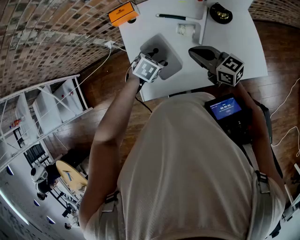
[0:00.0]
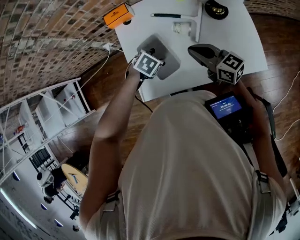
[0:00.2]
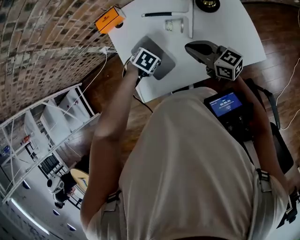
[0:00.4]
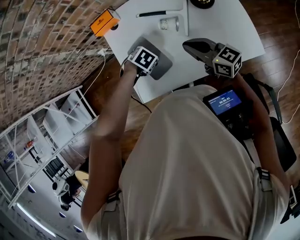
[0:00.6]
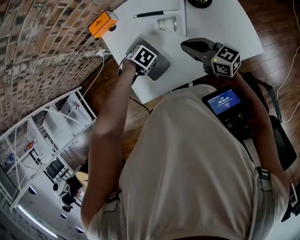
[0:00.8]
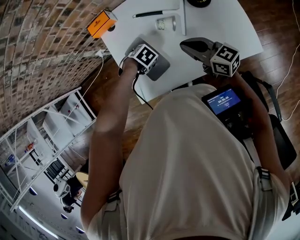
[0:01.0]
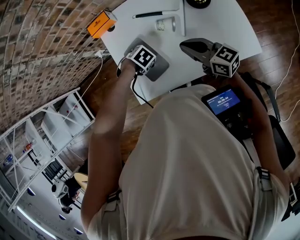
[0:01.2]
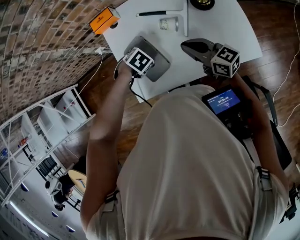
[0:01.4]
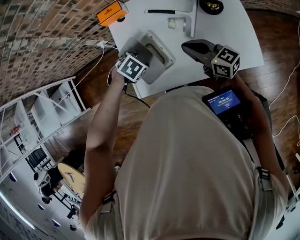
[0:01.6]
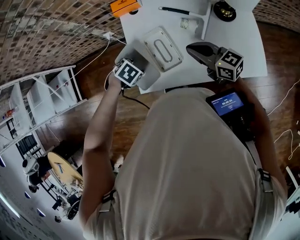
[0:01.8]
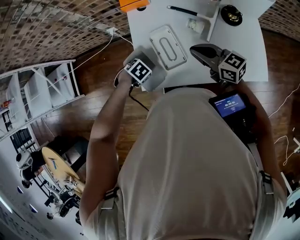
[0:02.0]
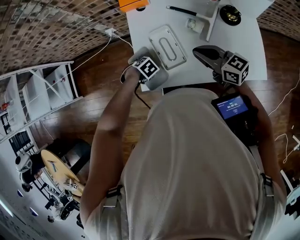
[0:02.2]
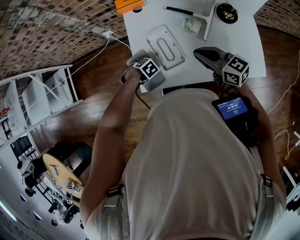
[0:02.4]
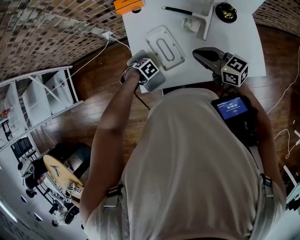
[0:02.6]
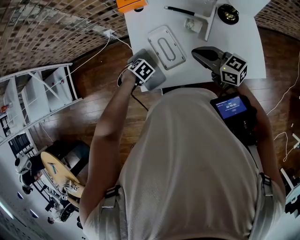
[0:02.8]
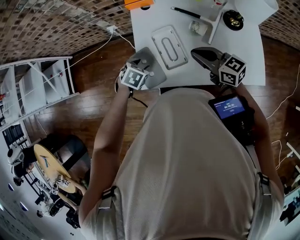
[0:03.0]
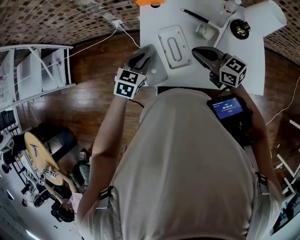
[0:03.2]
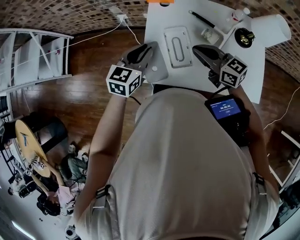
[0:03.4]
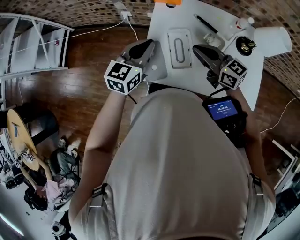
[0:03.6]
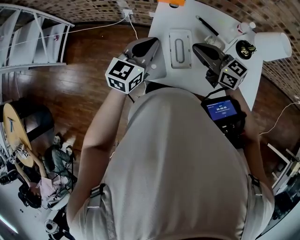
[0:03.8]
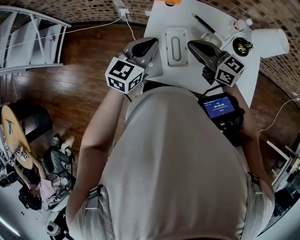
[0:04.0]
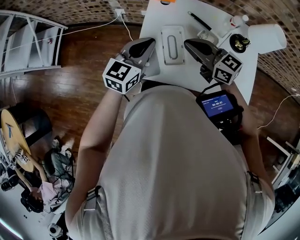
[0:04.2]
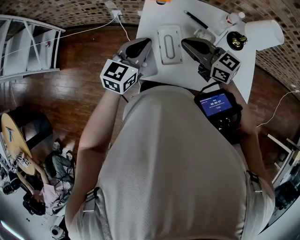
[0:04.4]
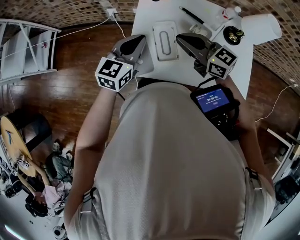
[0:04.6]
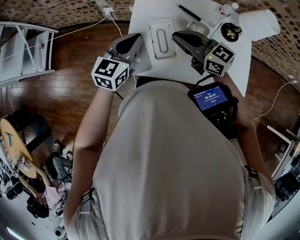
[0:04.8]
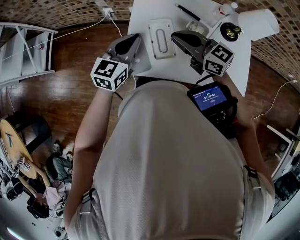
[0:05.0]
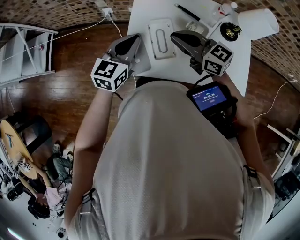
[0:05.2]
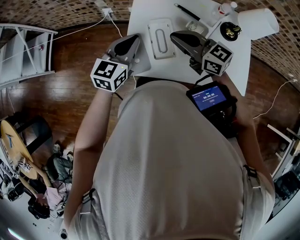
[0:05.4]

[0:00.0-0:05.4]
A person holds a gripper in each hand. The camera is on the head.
0:01.4 to 0:02.8: The right gripper changes place by some 10 cm, while the left gripper changes place by about 15 cm.
0:02.8 to 0:04.0: The left gripper heads upward, covering roughly 35 cm, points its fingers roughly 70 degrees further upward, and closes its fingers, while the right gripper is displaced upward by some 10 cm.
0:04.0 to 0:05.4: The grippers stay close to where they were, moving slightly.

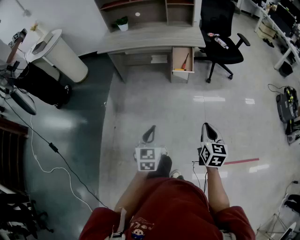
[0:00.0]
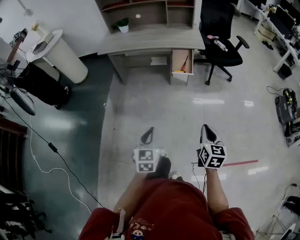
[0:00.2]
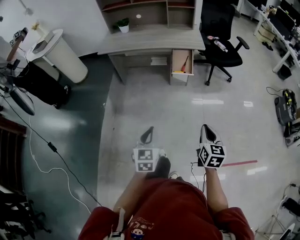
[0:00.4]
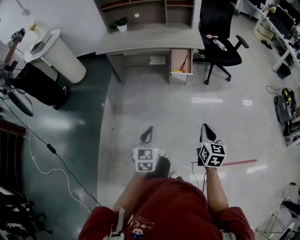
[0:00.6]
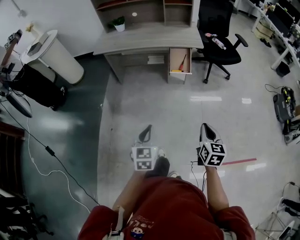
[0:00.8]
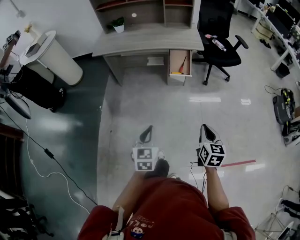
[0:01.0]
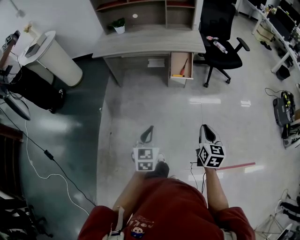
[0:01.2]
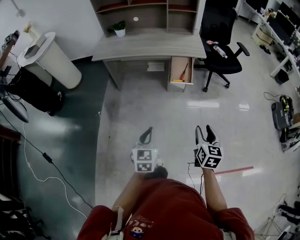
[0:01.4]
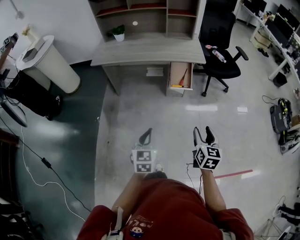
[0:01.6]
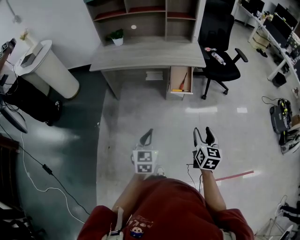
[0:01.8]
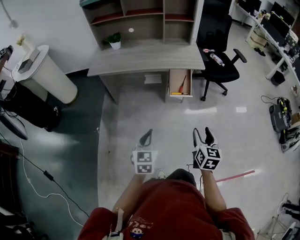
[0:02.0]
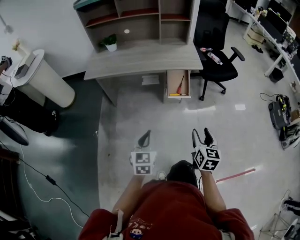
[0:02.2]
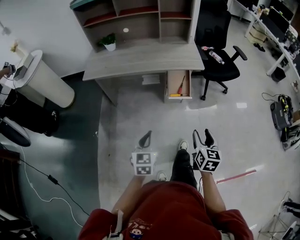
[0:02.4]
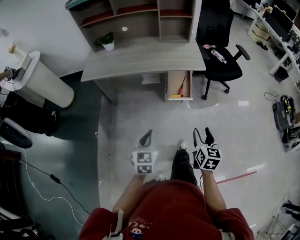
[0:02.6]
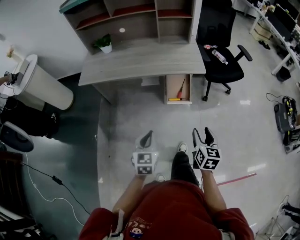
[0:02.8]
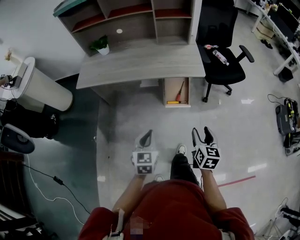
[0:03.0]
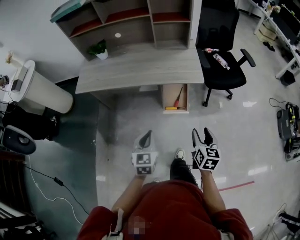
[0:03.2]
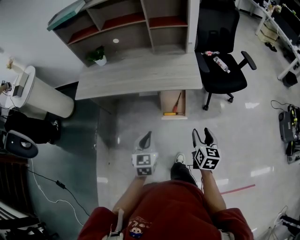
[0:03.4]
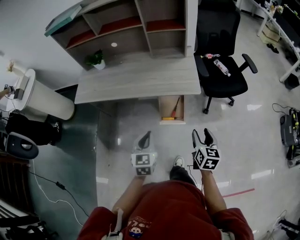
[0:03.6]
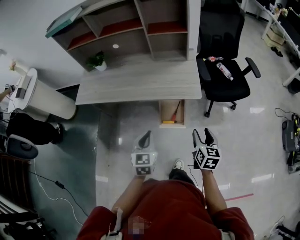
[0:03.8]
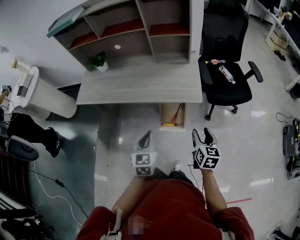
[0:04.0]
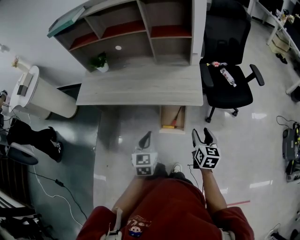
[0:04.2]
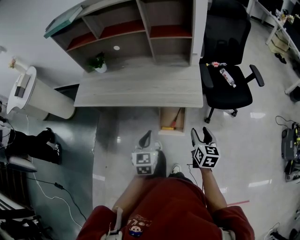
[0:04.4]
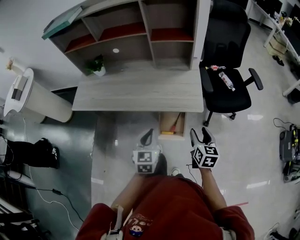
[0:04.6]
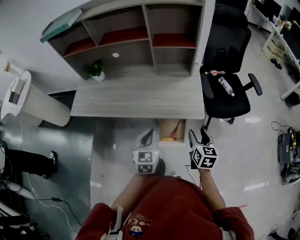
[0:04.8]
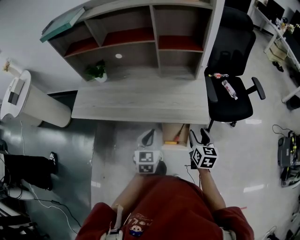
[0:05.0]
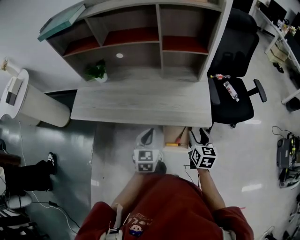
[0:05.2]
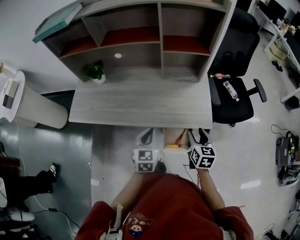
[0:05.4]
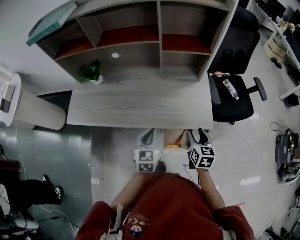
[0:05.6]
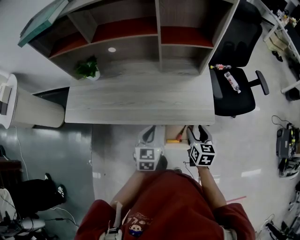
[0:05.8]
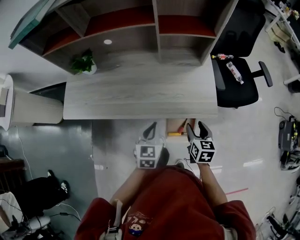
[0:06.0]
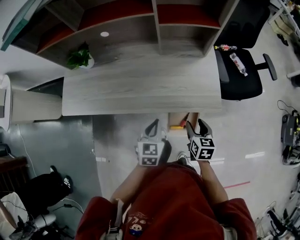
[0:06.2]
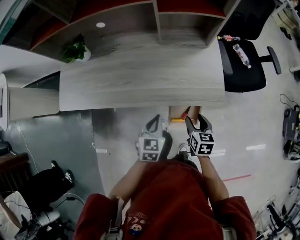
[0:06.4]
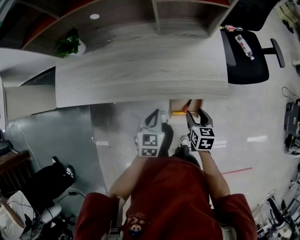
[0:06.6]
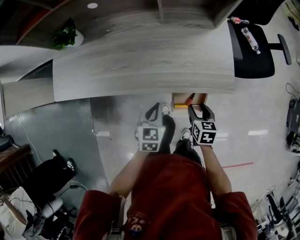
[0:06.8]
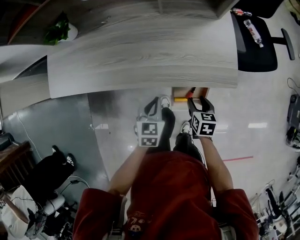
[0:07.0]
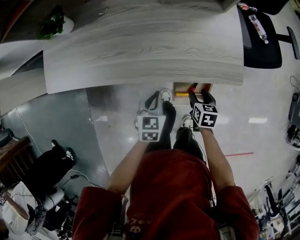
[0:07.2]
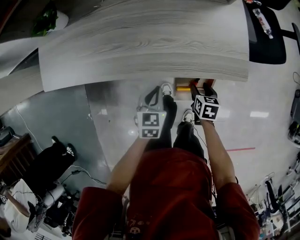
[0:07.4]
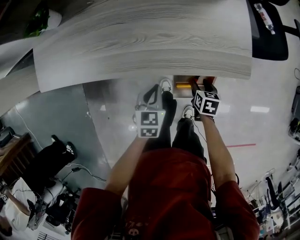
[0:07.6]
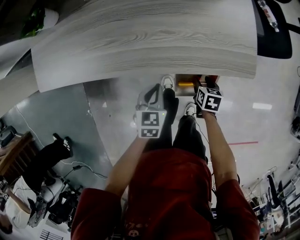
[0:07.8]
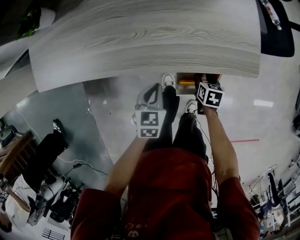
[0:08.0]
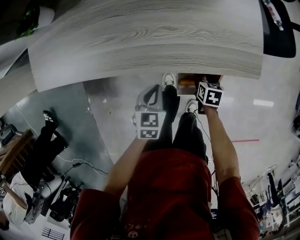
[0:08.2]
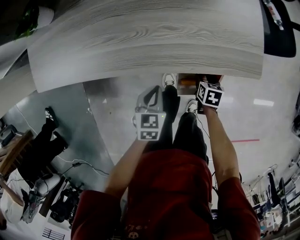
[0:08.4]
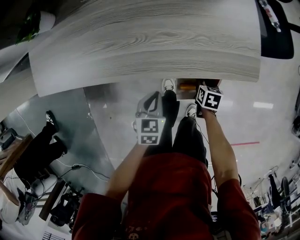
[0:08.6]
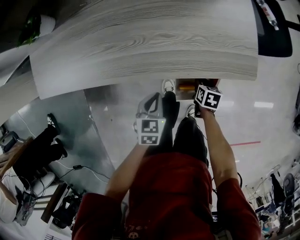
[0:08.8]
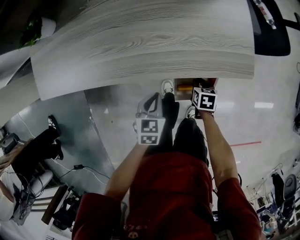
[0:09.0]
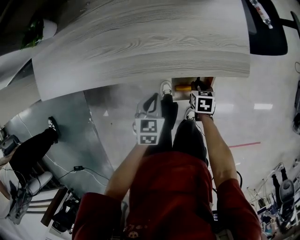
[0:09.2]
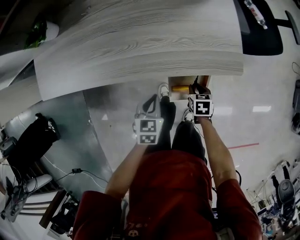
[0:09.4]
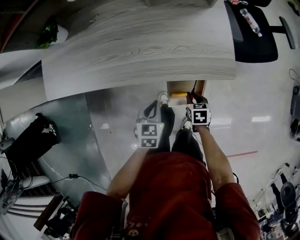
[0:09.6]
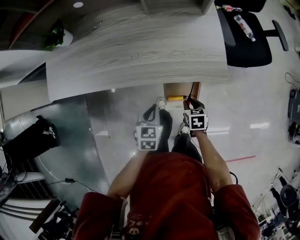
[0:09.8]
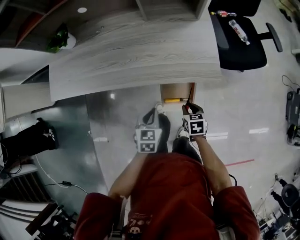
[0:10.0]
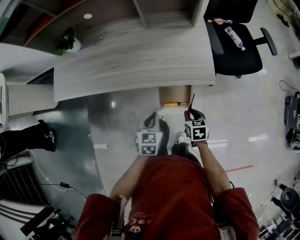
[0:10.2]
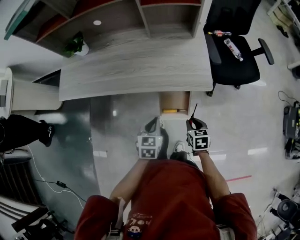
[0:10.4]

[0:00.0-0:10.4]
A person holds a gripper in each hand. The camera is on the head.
0:00.0 to 0:01.4: Both grippers move forward, about 10 cm. The right gripper opens up.
0:01.4 to 0:03.0: The two grippers go about 30 cm forward.
0:03.0 to 0:04.4: The grippers both shift forward and to the right by roughly 25 cm.
0:04.4 to 0:06.0: The left gripper is displaced forward by about 20 cm. The right gripper heads forward, to the left and downward, covering roughly 25 cm.
0:06.0 to 0:07.4: Both grippers move downward, approximately 20 cm. The right gripper turns by about 20 degrees.
0:07.4 to 0:09.0: The right gripper shifts roughly 5 cm downward, and closes up. Meanwhile the left gripper goes some 5 cm backward.
0:09.0 to 0:10.4: The right gripper shifts roughly 25 cm upward and backward; the left gripper heads upward, backward and to the right, covering approximately 20 cm.

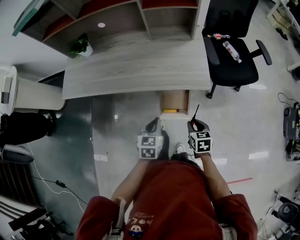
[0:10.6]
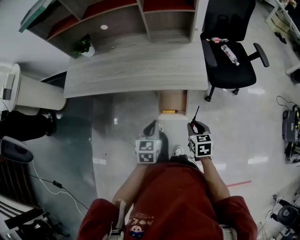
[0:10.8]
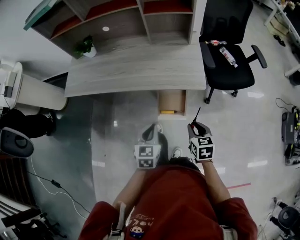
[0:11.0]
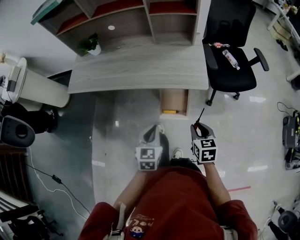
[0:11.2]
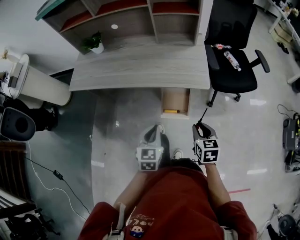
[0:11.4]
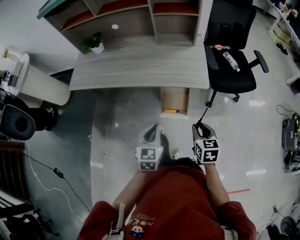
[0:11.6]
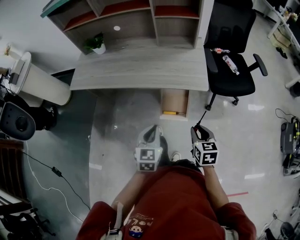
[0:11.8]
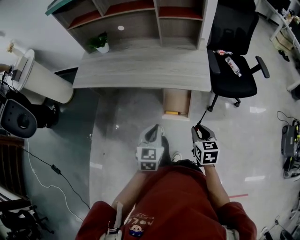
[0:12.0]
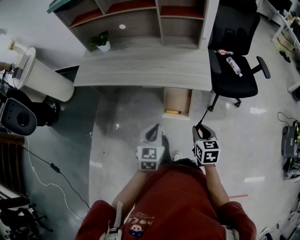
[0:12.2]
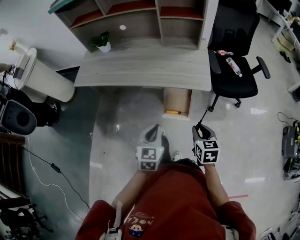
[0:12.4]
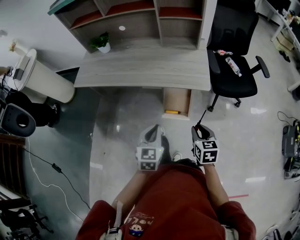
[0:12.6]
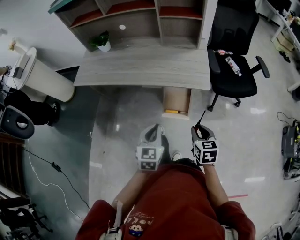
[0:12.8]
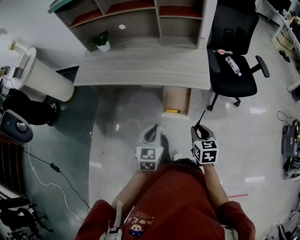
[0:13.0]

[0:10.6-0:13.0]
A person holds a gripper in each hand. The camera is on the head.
0:10.6 to 0:11.8: The left gripper goes some 15 cm backward and upward, while the right gripper goes approximately 15 cm upward and backward.
0:11.8 to 0:13.0: The grippers stay close to where they were, moving slightly.

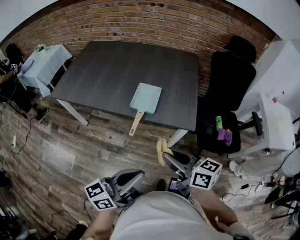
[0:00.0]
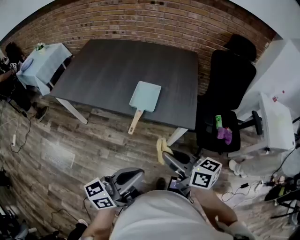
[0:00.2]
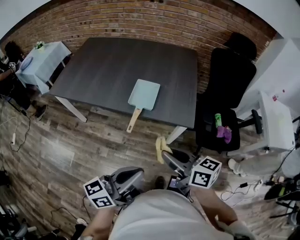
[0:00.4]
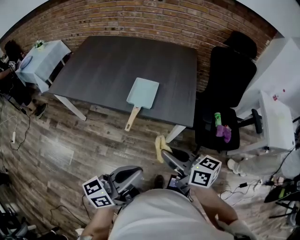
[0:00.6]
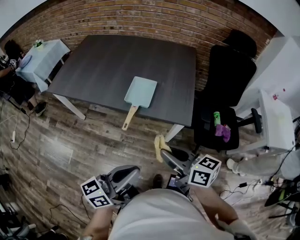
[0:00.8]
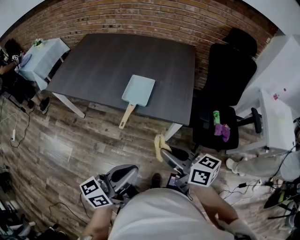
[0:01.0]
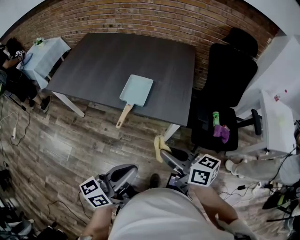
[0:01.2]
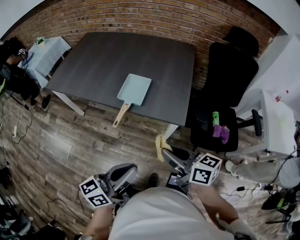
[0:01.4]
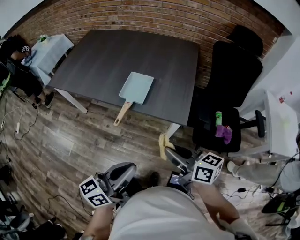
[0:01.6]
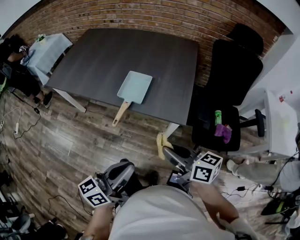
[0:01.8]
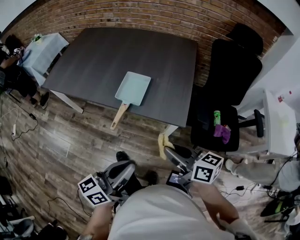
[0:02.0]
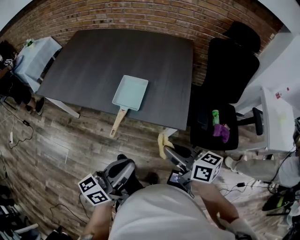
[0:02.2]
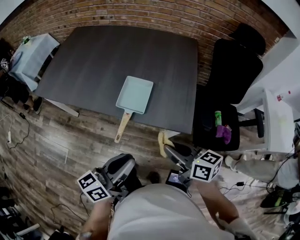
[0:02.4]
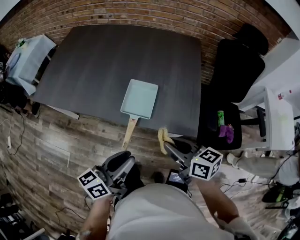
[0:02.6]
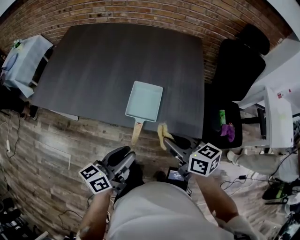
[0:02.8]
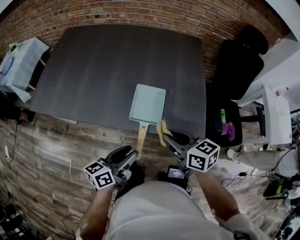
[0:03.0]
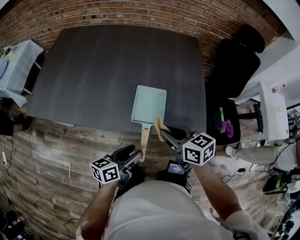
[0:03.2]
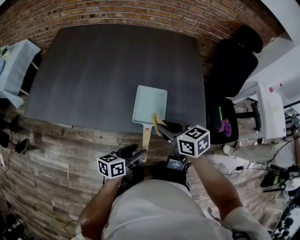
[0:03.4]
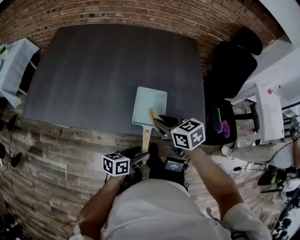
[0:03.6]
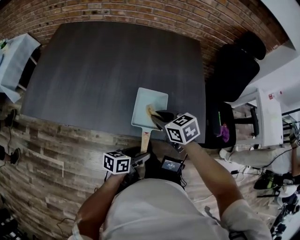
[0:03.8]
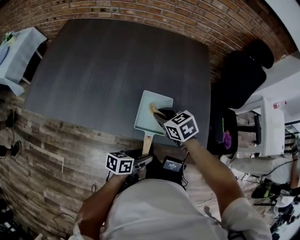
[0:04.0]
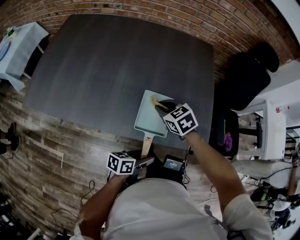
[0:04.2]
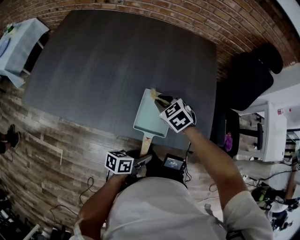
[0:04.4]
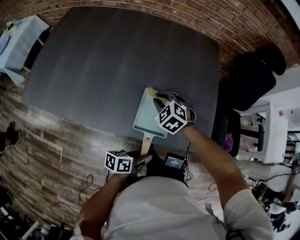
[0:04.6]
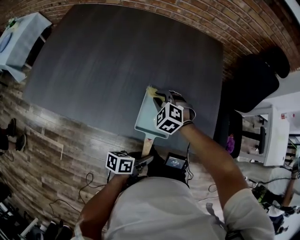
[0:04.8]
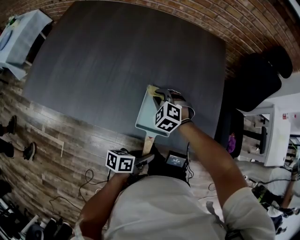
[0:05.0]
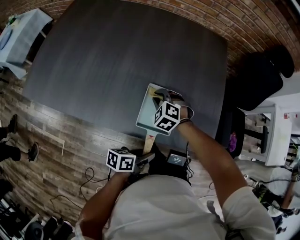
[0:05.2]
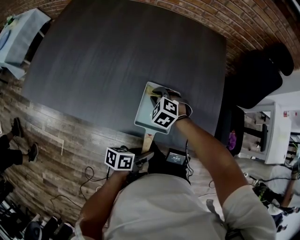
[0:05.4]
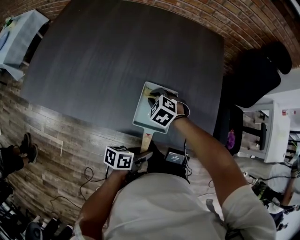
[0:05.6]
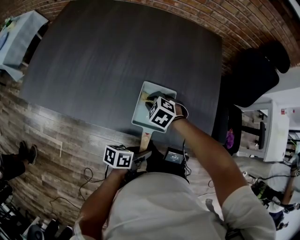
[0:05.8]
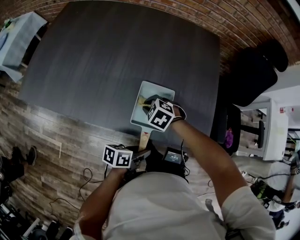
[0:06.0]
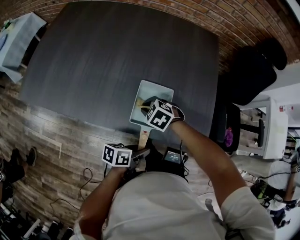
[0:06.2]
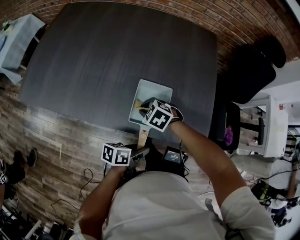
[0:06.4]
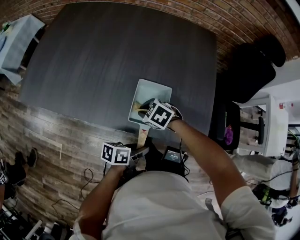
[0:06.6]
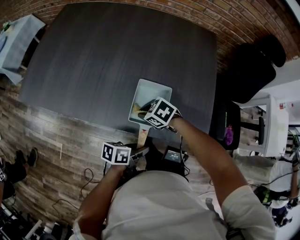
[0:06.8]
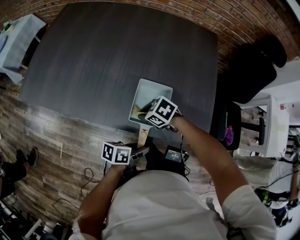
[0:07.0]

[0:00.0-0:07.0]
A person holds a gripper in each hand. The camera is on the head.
0:00.0 to 0:01.4: Both grippers travel together to the right, roughly 10 cm.
0:01.4 to 0:02.8: The grippers both shift forward and to the left by about 25 cm. The left gripper opens.
0:02.8 to 0:04.2: The right gripper travels forward, downward and to the left by some 25 cm, and swivels about 40 degrees, while the left gripper moves downward, about 15 cm, changes its angle by roughly 30 degrees, and opens its fingers.
0:04.2 to 0:05.6: The right gripper goes roughly 10 cm downward, and turns by about 30 degrees. The left gripper closes.
0:05.6 to 0:07.0: The right gripper changes place by some 10 cm, and swivels about 40 degrees.
